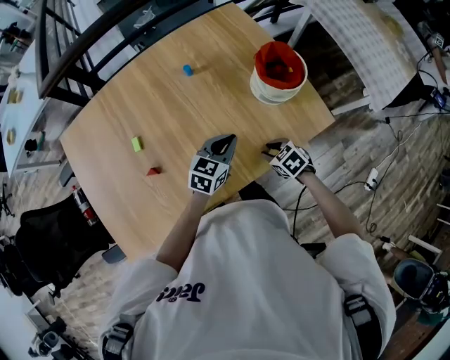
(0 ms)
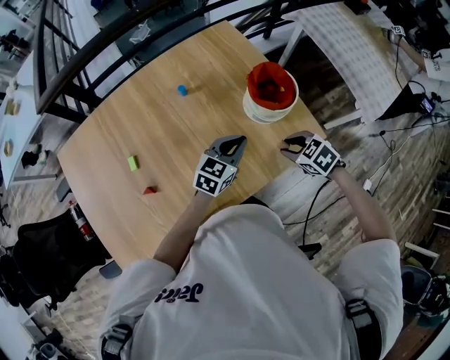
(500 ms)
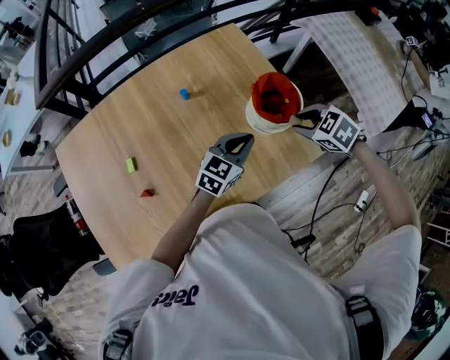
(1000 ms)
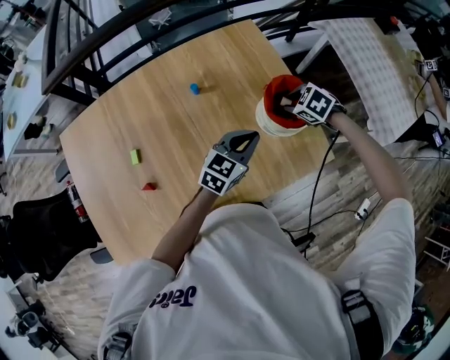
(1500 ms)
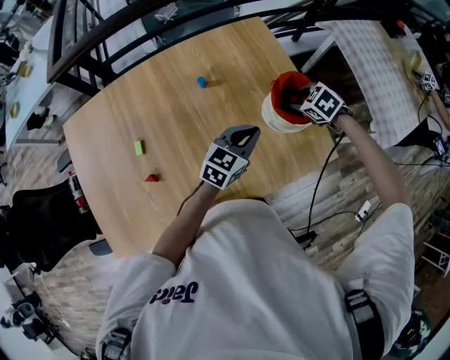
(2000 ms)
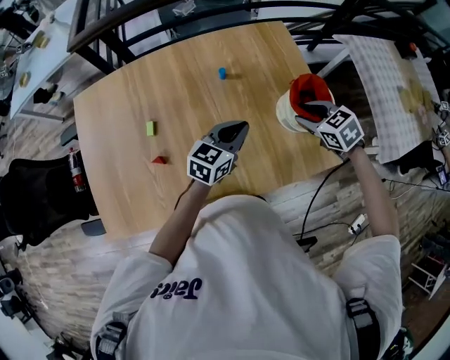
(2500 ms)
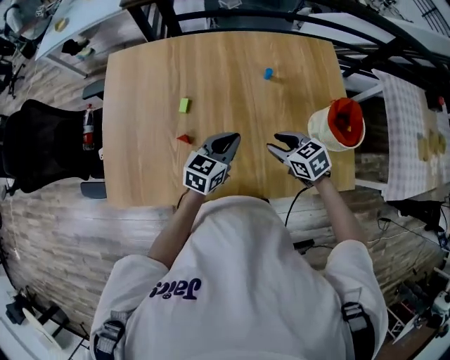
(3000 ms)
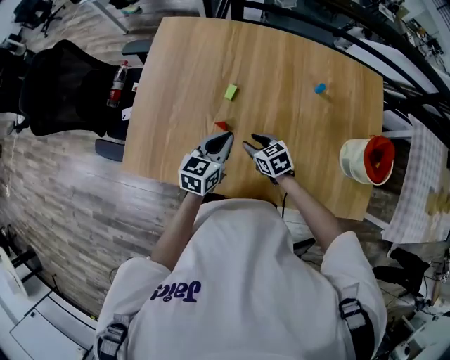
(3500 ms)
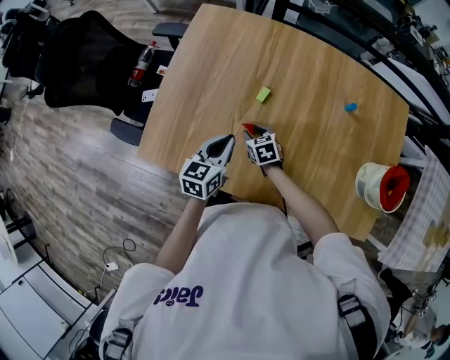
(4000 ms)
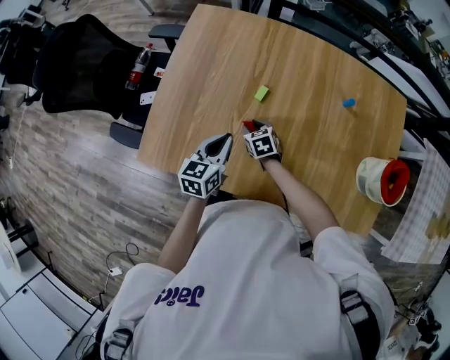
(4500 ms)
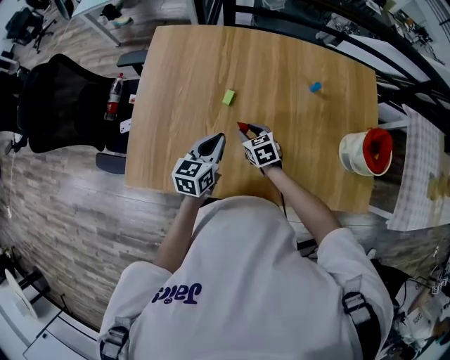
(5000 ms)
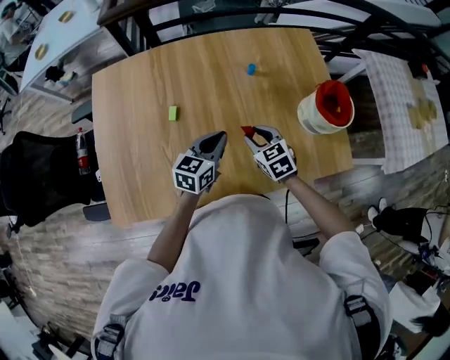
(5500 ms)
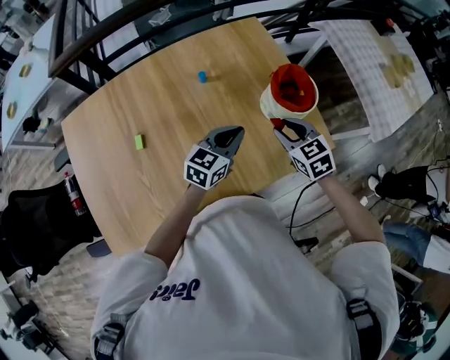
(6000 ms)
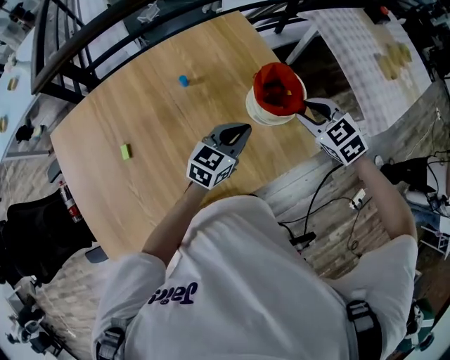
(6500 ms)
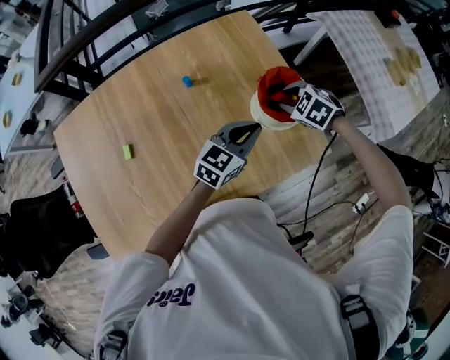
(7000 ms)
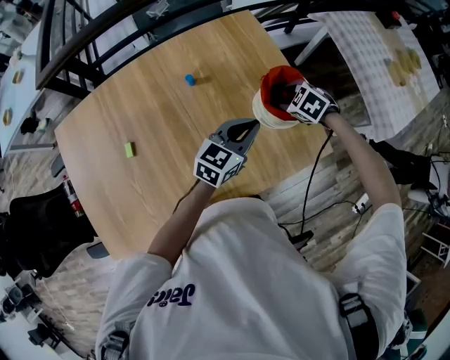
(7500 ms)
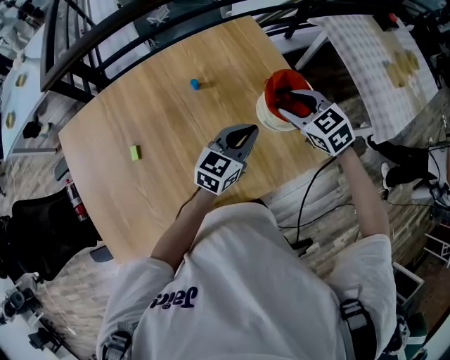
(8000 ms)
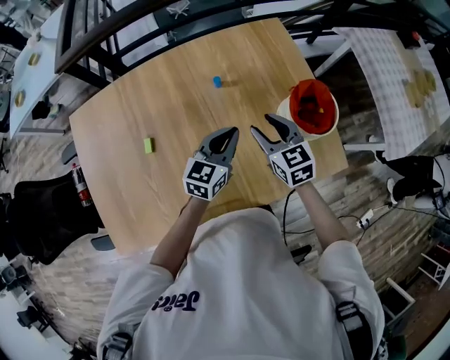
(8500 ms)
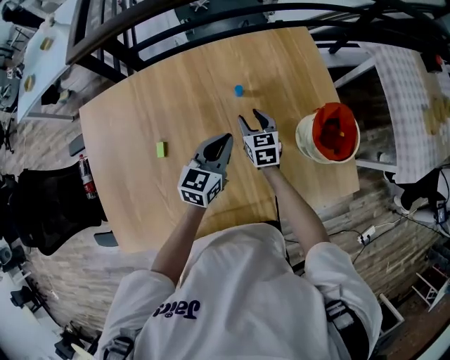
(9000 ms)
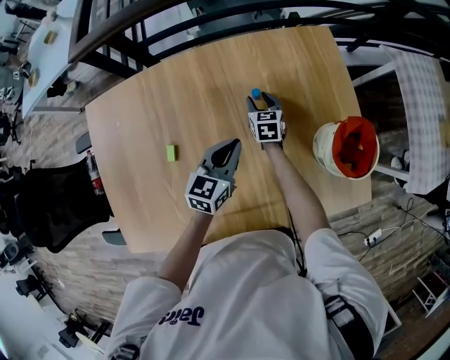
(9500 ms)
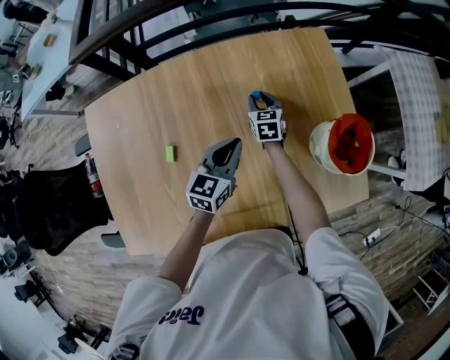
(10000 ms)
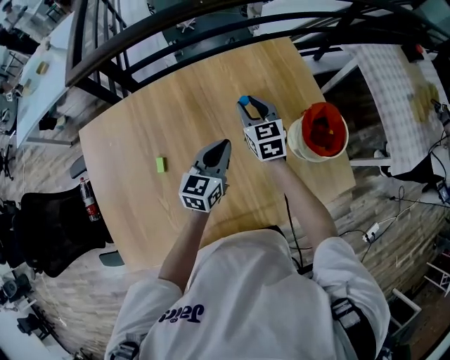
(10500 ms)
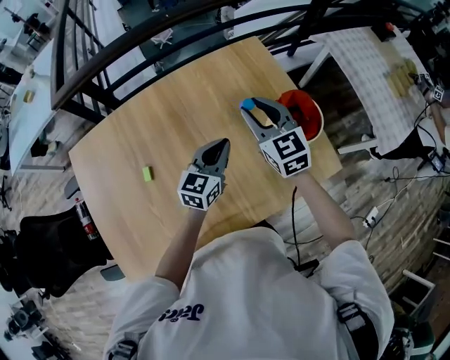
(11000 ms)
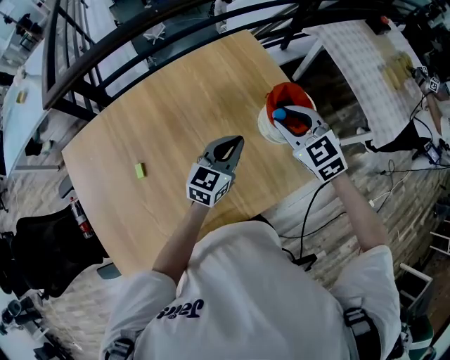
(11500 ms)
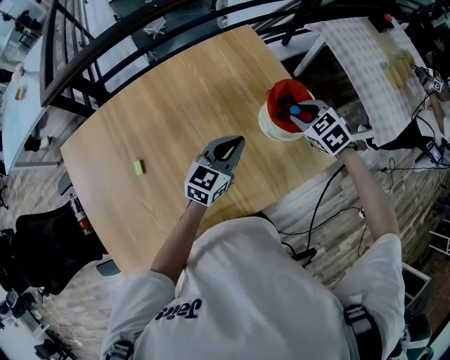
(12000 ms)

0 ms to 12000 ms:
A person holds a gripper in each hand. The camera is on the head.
0 ms to 2000 ms: The left gripper moves forward, upward and to the right, about 15 cm; the right gripper moves forward and upward, some 30 cm, and swivels approximately 20 degrees.
2000 ms to 4000 ms: The pair of grippers is taken about 50 cm. The right gripper changes its angle by about 20 degrees, while the left gripper turns by approximately 60 degrees.
4000 ms to 6000 ms: Both grippers are carried about 40 cm. The left gripper rotates roughly 60 degrees; the right gripper changes its angle by about 40 degrees.
6000 ms to 8000 ms: The right gripper goes some 10 cm forward. The left gripper travels to the right by roughly 5 cm.
8000 ms to 10000 ms: The left gripper heads to the left, covering roughly 20 cm, and rotates some 30 degrees; the right gripper shifts about 35 cm to the left, downward and forward, and swivels about 20 degrees.
10000 ms to 12000 ms: The right gripper heads to the right, upward and backward, covering approximately 35 cm, and changes its angle by roughly 30 degrees. Meanwhile the left gripper goes some 15 cm to the right, and turns by roughly 30 degrees.

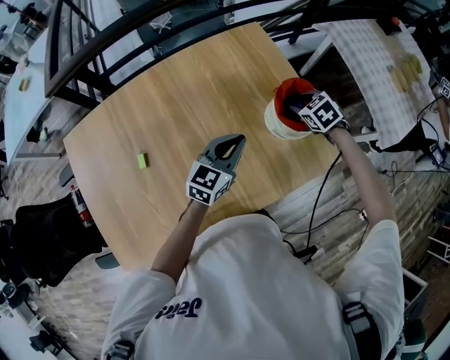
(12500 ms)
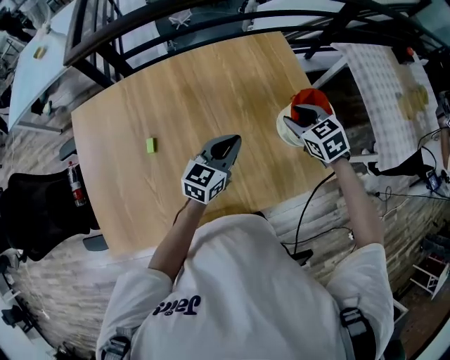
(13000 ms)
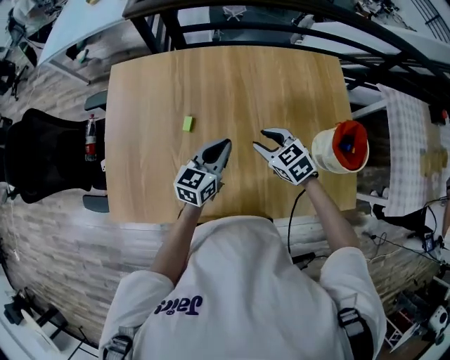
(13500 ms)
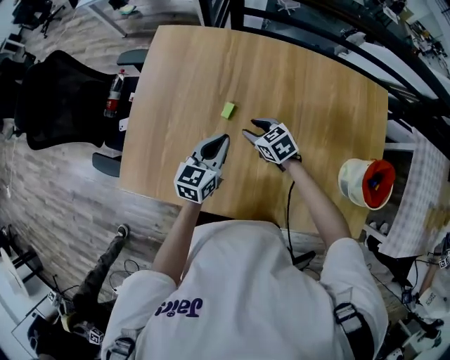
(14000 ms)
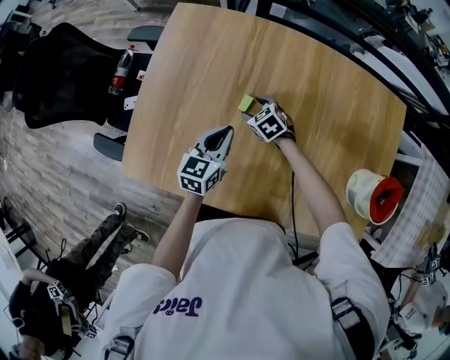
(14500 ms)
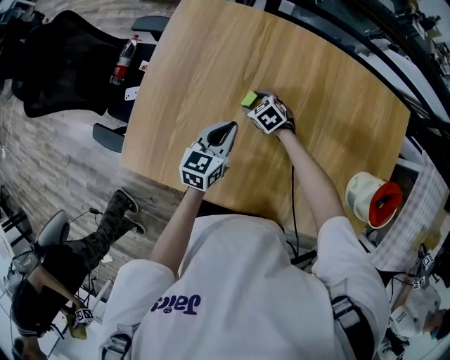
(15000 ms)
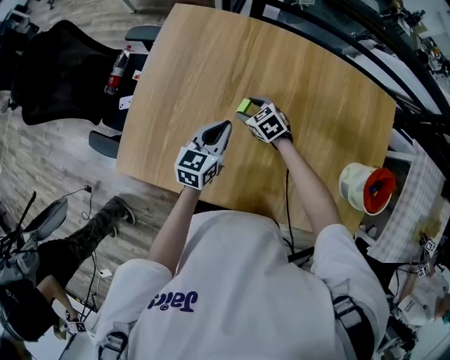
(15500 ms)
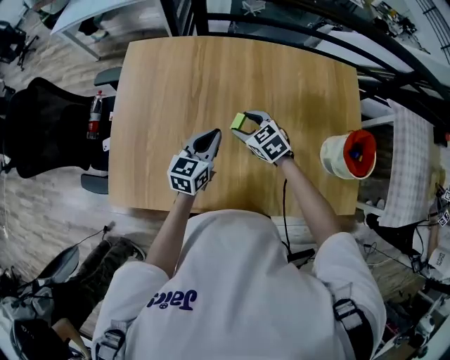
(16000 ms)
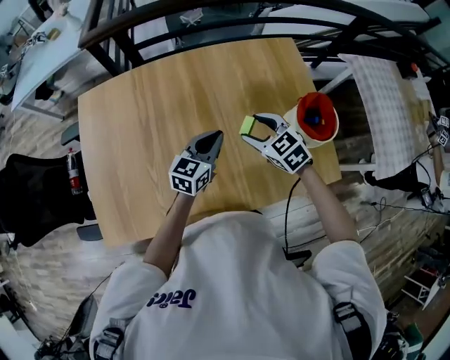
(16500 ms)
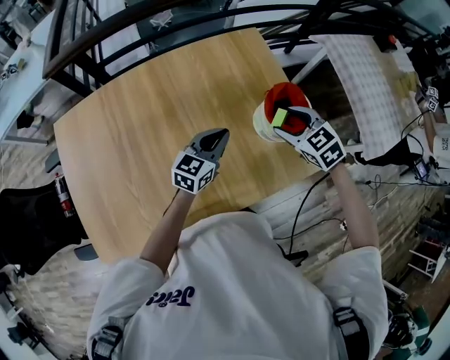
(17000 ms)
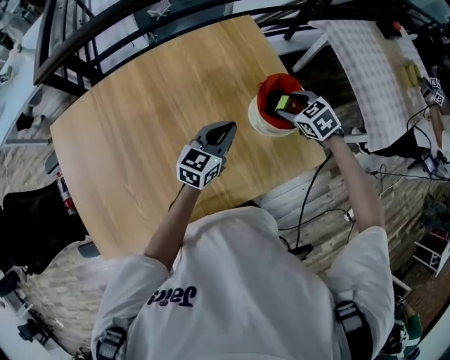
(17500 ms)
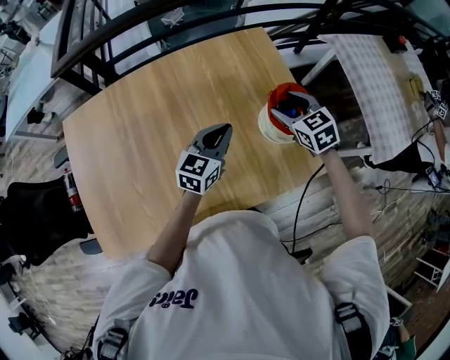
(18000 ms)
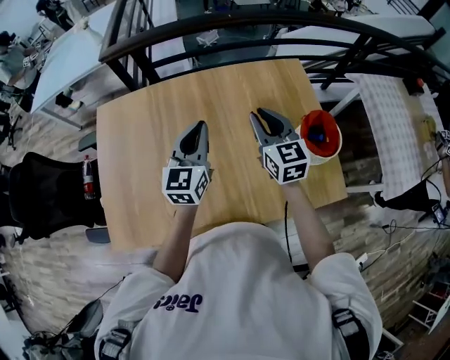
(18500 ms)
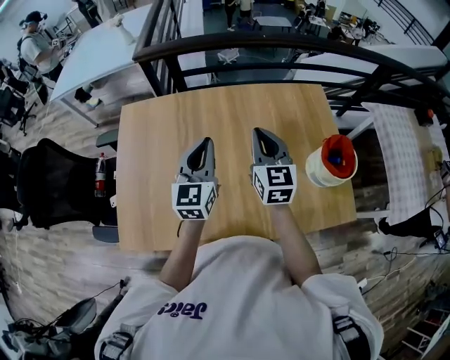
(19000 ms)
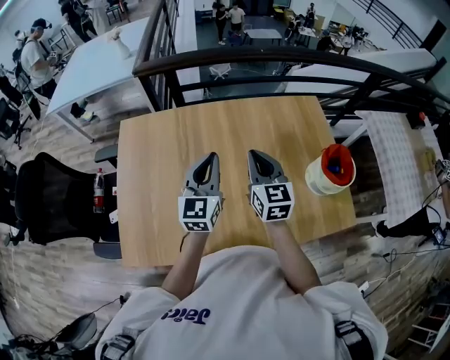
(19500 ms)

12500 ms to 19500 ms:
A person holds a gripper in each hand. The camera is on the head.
12500 ms to 14500 ms: Both grippers are carried some 50 cm. The right gripper turns by some 50 degrees, and opens up. The left gripper turns by about 50 degrees.
14500 ms to 16000 ms: The right gripper goes approximately 15 cm upward, backward and to the right, while the left gripper moves to the right, about 10 cm.
16000 ms to 17500 ms: The right gripper changes place by approximately 50 cm, and changes its angle by approximately 30 degrees. The left gripper moves roughly 35 cm, and turns by some 40 degrees.
17500 ms to 19500 ms: The two grippers go about 40 cm to the left and upward. The left gripper rotates about 50 degrees; the right gripper angles its fingers upward, by approximately 40 degrees, and closes.

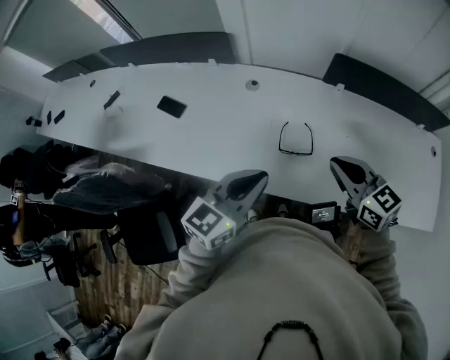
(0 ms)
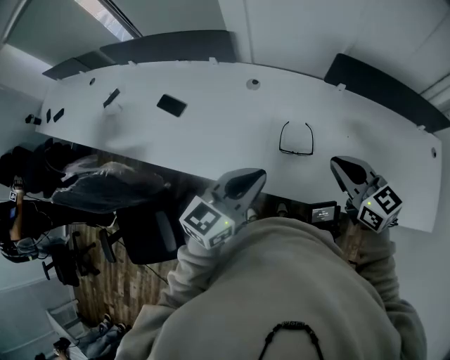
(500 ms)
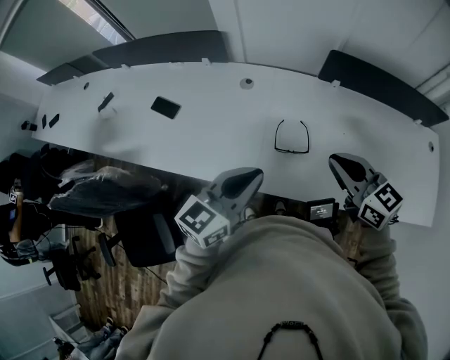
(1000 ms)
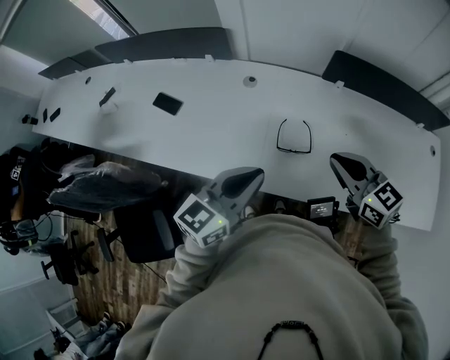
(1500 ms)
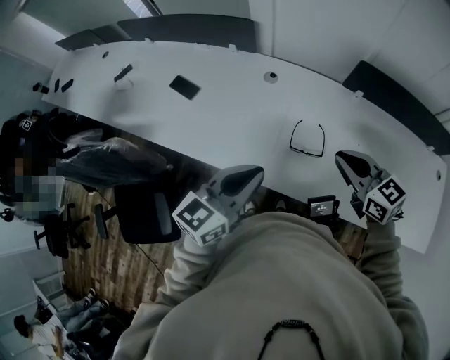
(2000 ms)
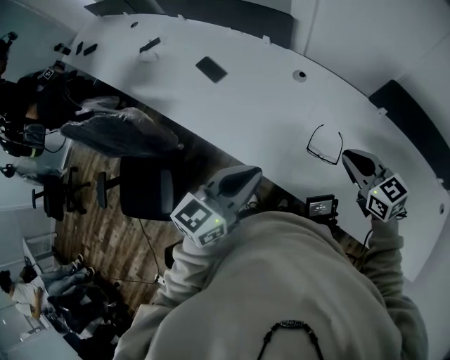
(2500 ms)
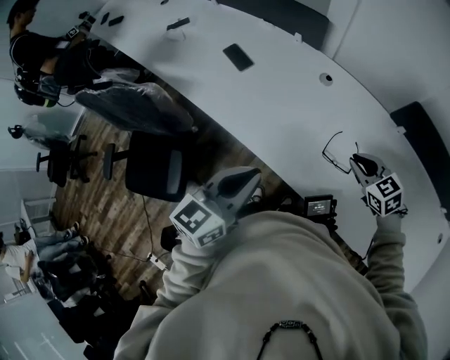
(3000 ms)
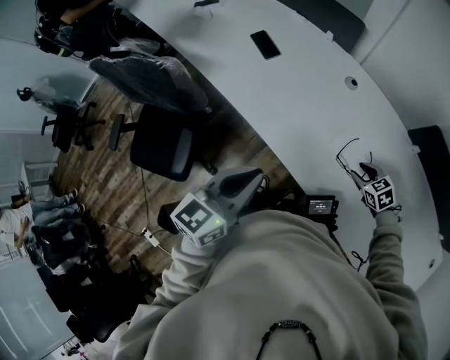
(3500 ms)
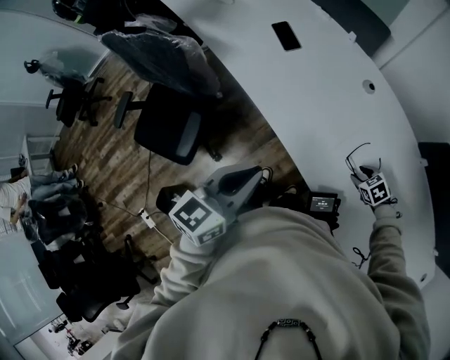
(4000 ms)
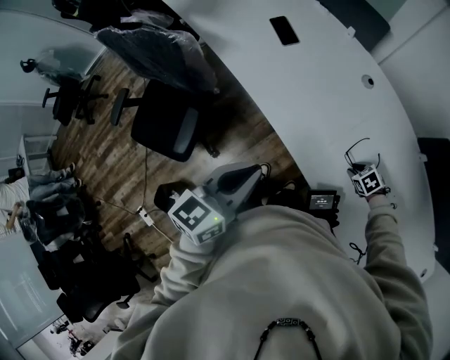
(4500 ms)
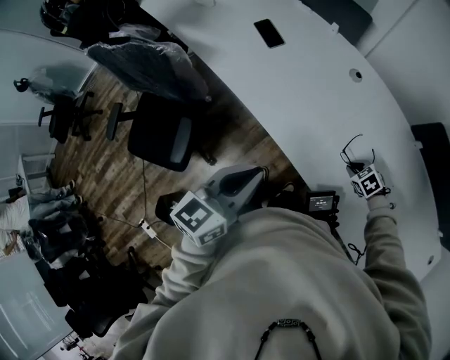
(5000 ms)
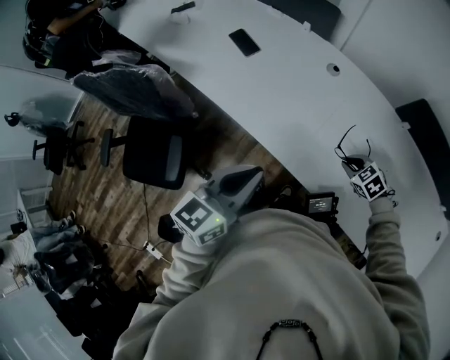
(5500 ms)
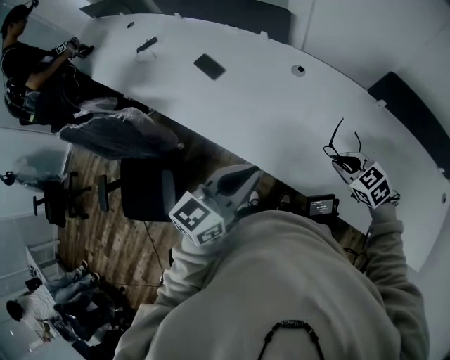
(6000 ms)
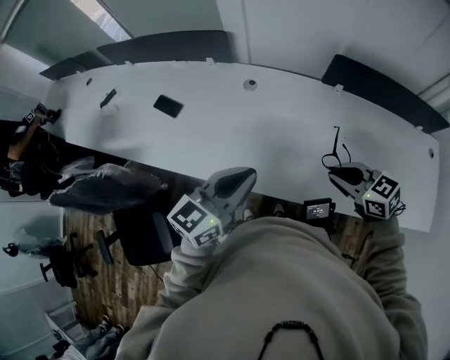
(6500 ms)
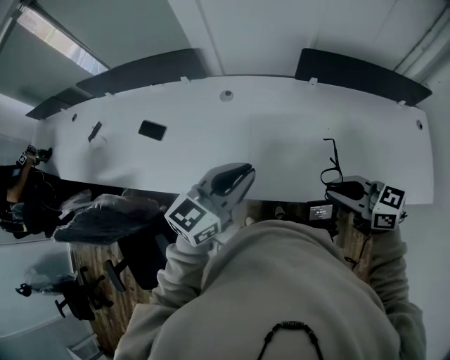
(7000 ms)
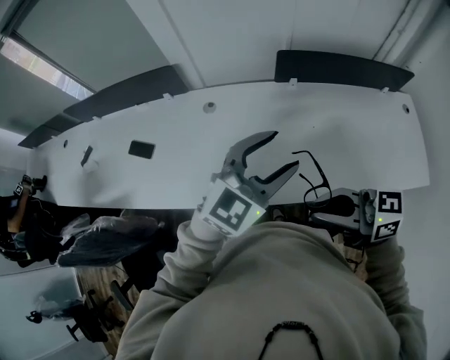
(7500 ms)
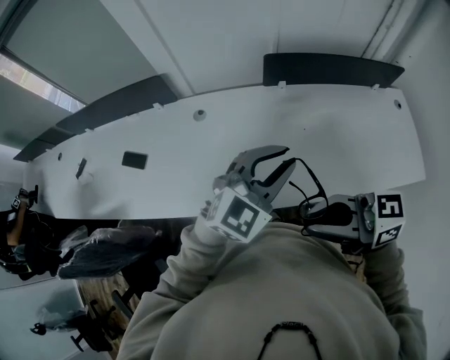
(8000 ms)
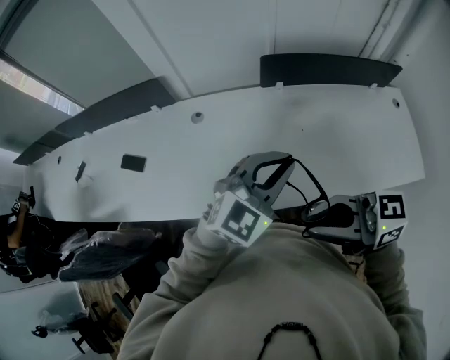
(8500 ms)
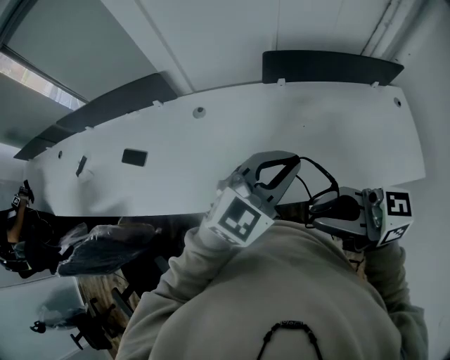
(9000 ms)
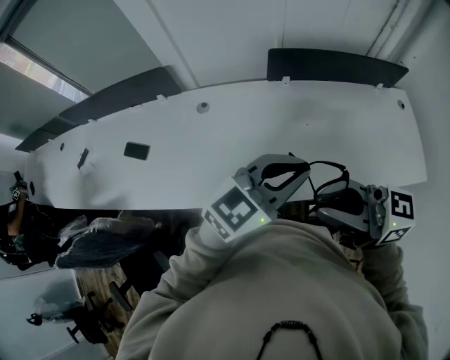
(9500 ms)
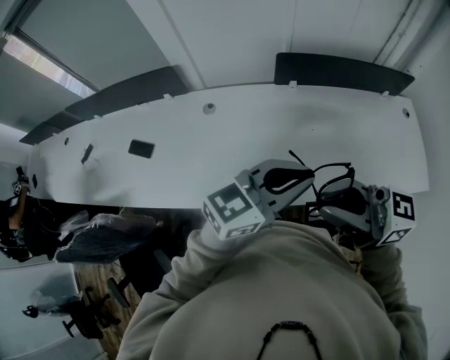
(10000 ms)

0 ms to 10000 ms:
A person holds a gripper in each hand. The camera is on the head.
0 ms to 2000 ms: The grippers move only a little.
2000 ms to 4000 ms: The right gripper heads downward, covering about 30 cm, angles its fingers downward, by some 50 degrees, and opens its fingers, while the left gripper changes place by approximately 15 cm, and turns by roughly 40 degrees.
4000 ms to 6000 ms: The right gripper travels upward by some 20 cm, turns by some 20 degrees, and closes, while the left gripper changes place by some 10 cm, and changes its angle by approximately 30 degrees.
6000 ms to 8000 ms: The left gripper moves approximately 30 cm, changes its angle by roughly 60 degrees, and opens, then closes once more. The right gripper is displaced upward by about 25 cm, and tilts its fingers some 50 degrees upward.
8000 ms to 10000 ms: The left gripper moves approximately 5 cm, and rotates about 40 degrees, while the right gripper heads upward, covering some 5 cm.
